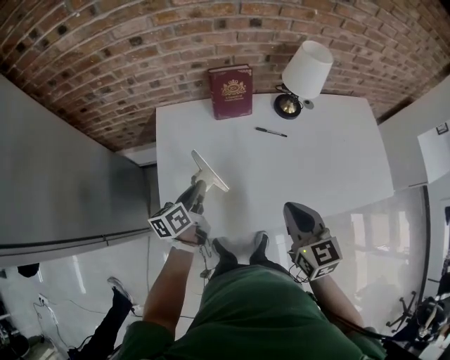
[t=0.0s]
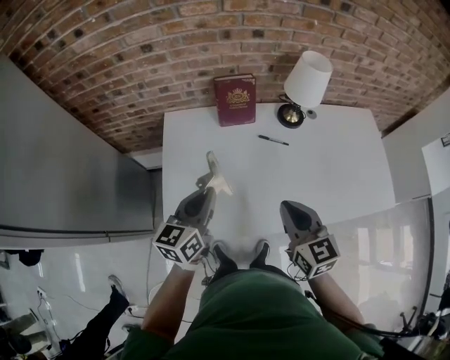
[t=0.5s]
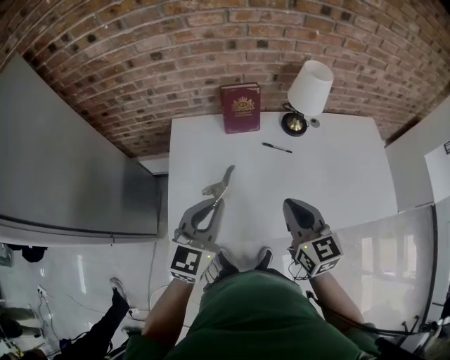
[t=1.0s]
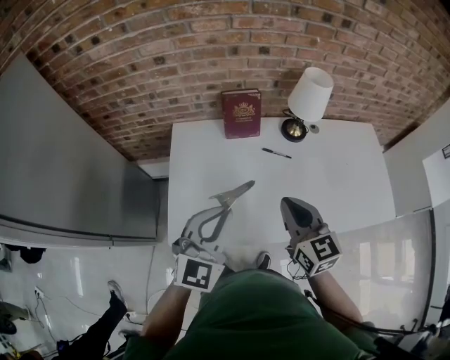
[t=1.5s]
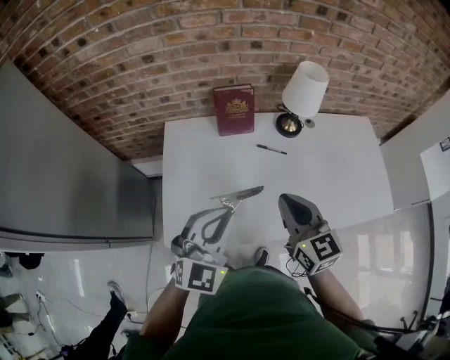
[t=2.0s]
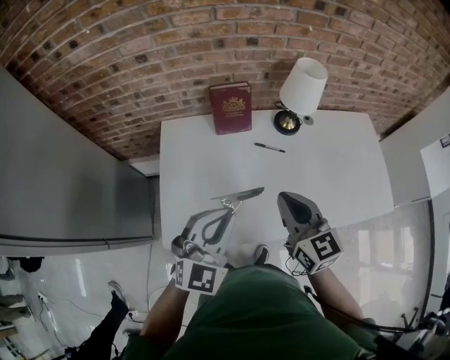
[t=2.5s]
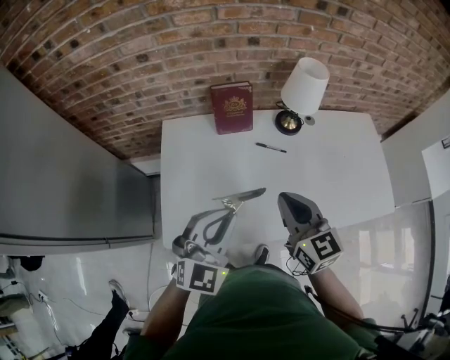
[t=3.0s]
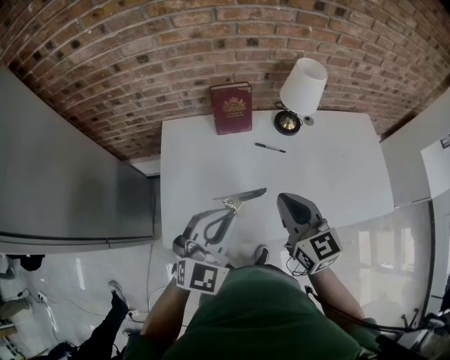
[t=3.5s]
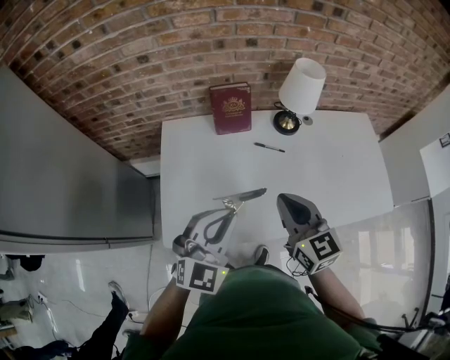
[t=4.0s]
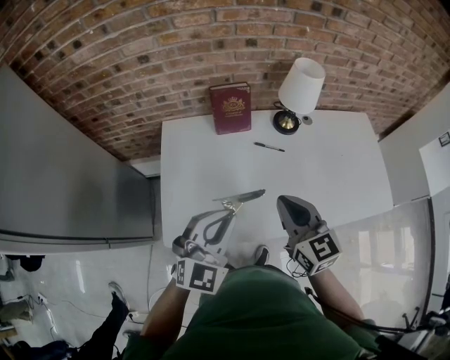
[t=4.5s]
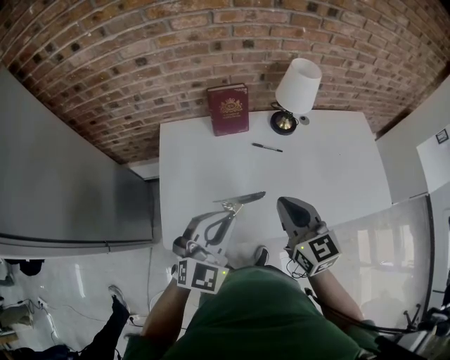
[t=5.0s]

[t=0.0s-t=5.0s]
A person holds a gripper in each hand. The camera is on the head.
t=0.0s to t=2.5s: The left gripper shifts about 25 cm upward, to the right and backward, and twists about 80 degrees clockwise, seen from behind, while the right gripper moves upward, roughly 5 cm.
t=2.5s to t=5.0s: The grippers stay close to where they were, moving slightly.

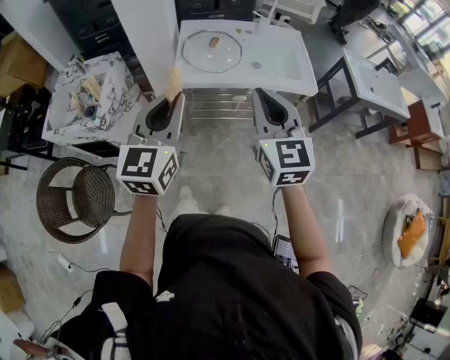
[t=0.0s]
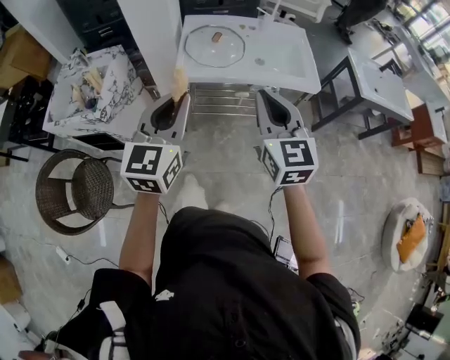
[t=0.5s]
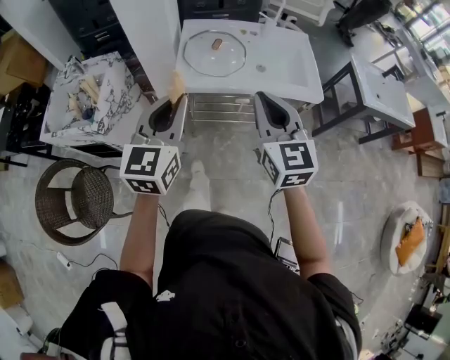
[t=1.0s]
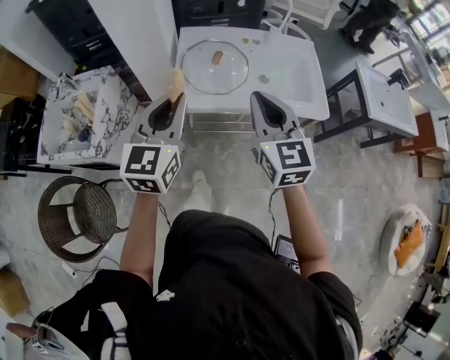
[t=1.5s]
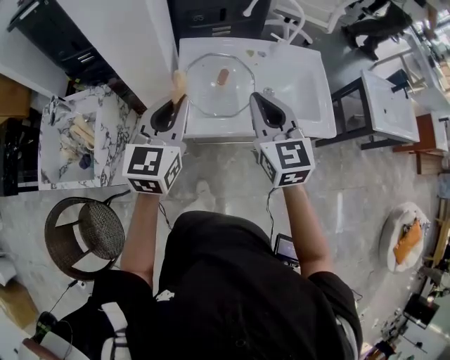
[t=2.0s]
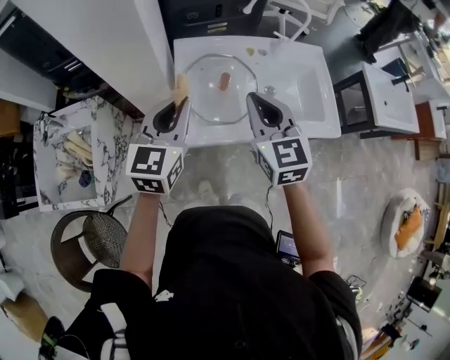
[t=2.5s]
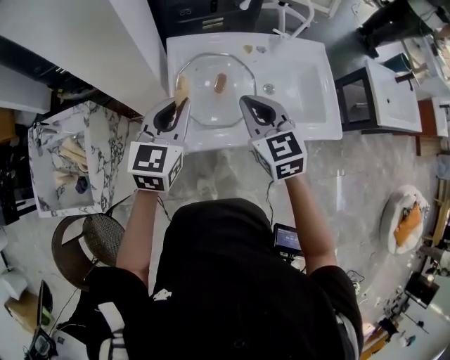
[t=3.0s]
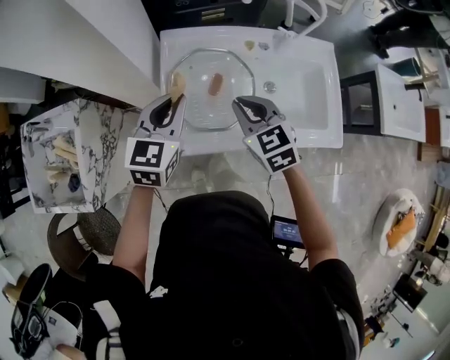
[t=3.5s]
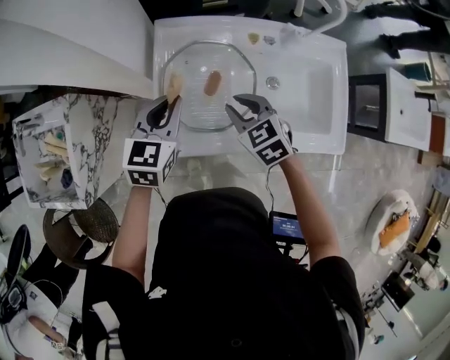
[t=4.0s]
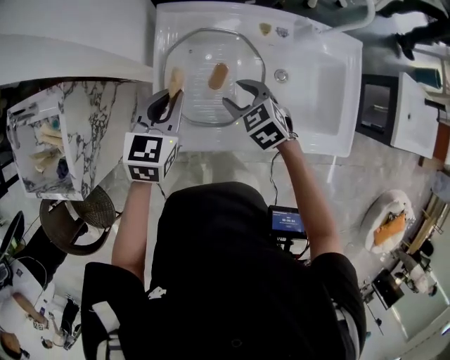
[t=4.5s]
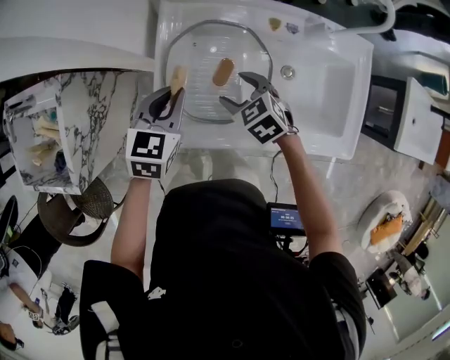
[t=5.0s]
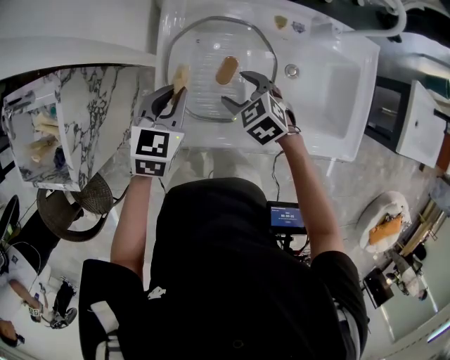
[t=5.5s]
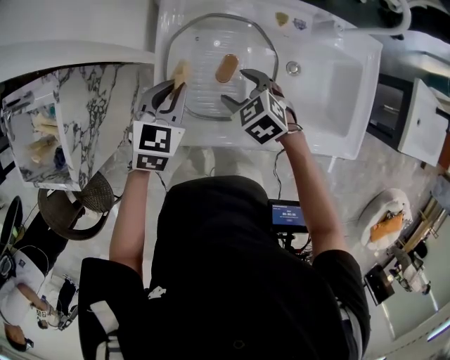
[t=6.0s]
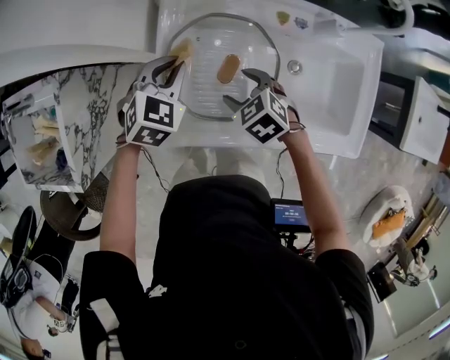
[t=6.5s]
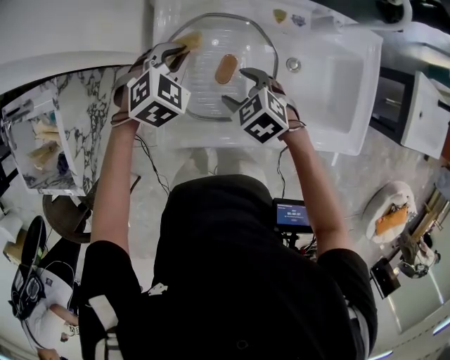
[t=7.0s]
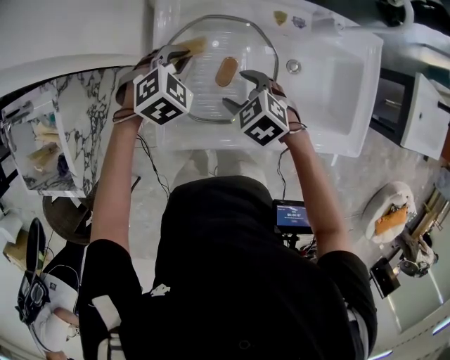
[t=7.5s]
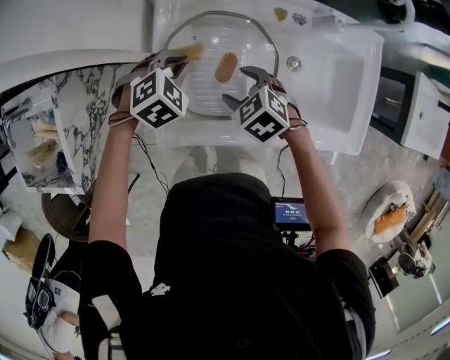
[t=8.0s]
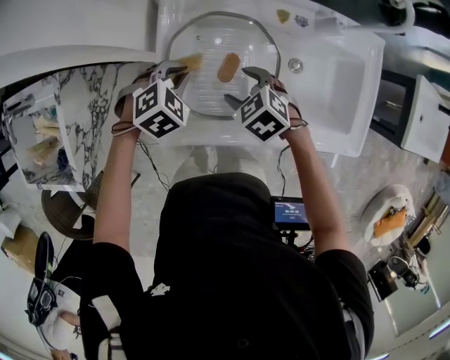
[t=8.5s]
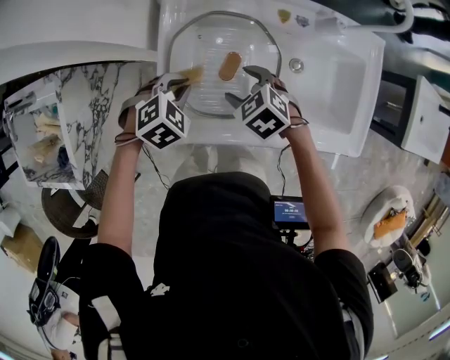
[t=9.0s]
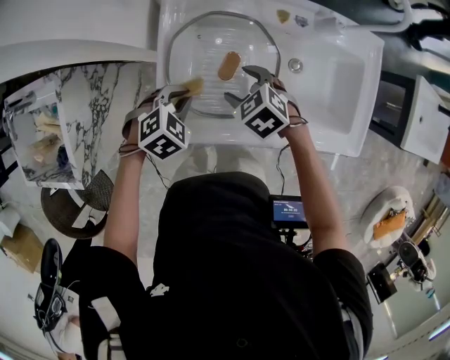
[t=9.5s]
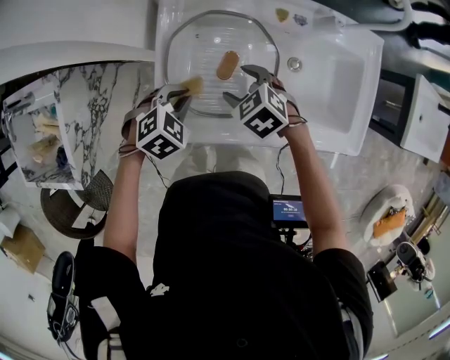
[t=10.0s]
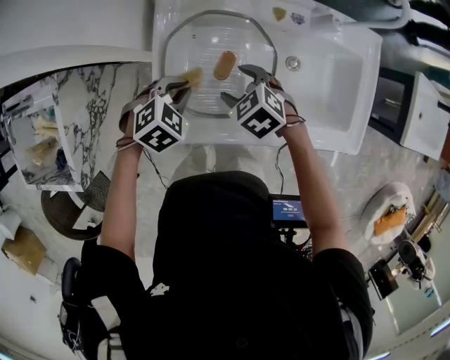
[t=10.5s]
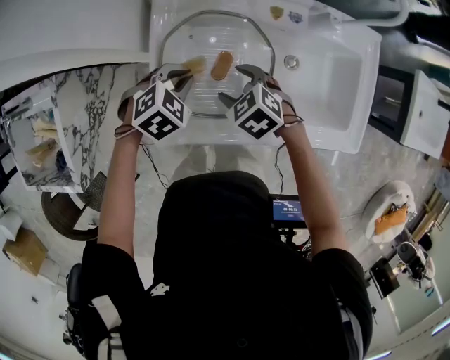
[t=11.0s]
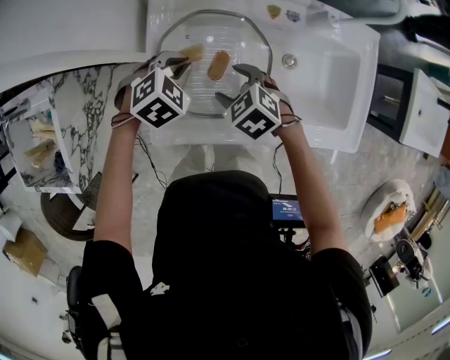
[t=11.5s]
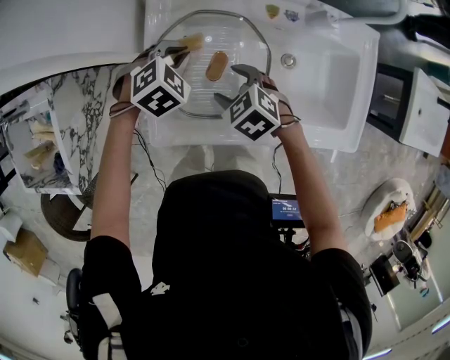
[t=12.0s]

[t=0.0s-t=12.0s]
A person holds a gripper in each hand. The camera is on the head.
t=0.0s to t=2.0s: The grippers both shift forward by approximately 30 cm.
t=2.0s to t=4.0s: The grippers both shift downward and forward by approximately 25 cm. The left gripper turns by about 20 degrees; the right gripper angles its fingers downward, by roughly 30 degrees.
t=4.0s to t=6.0s: The two grippers go roughly 10 cm downward. The right gripper opens its fingers.
t=6.0s to t=8.0s: The left gripper ends up about 5 cm from where it was, and rotates some 40 degrees.
t=8.0s to t=10.0s: The left gripper goes some 10 cm backward.
t=10.0s to t=12.0s: The left gripper travels forward by roughly 10 cm.

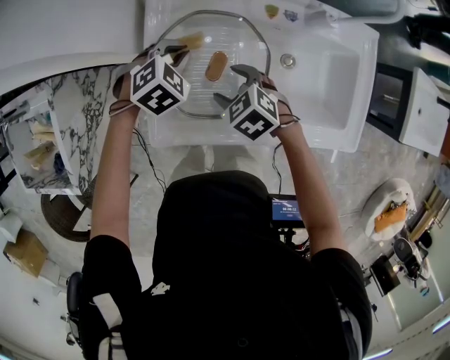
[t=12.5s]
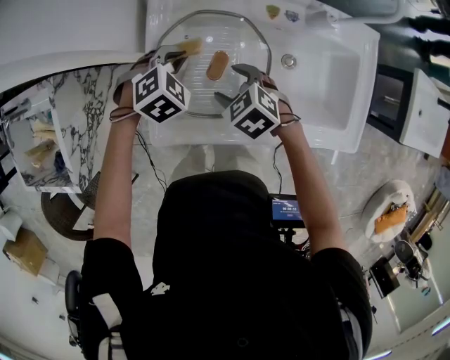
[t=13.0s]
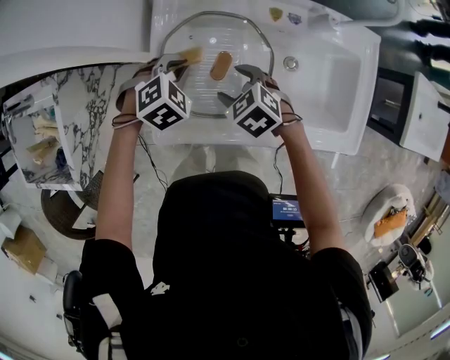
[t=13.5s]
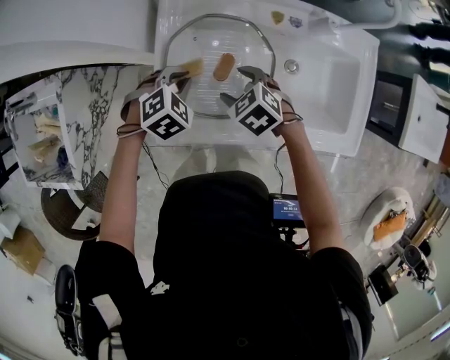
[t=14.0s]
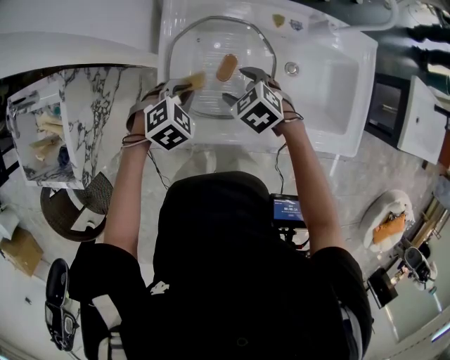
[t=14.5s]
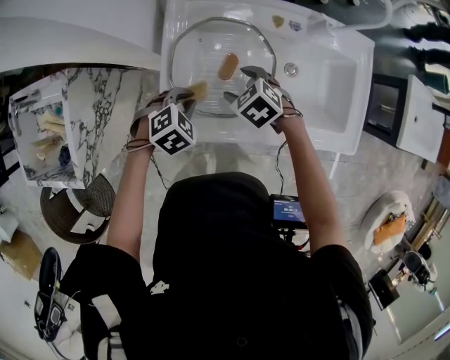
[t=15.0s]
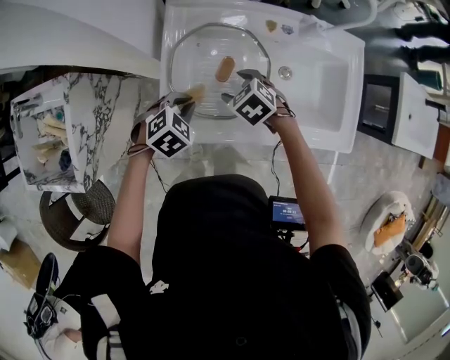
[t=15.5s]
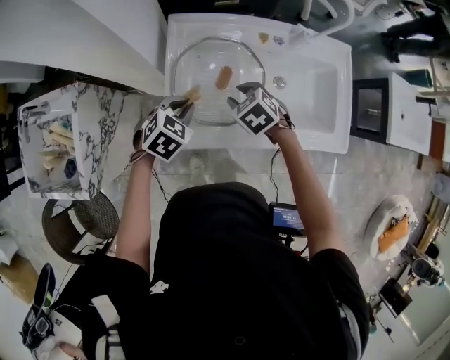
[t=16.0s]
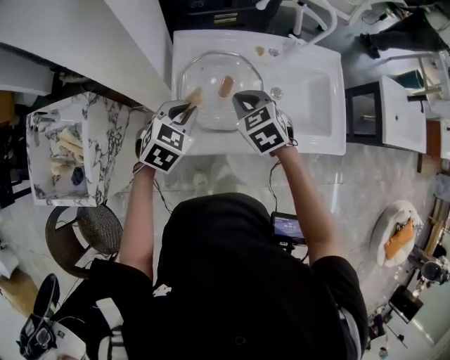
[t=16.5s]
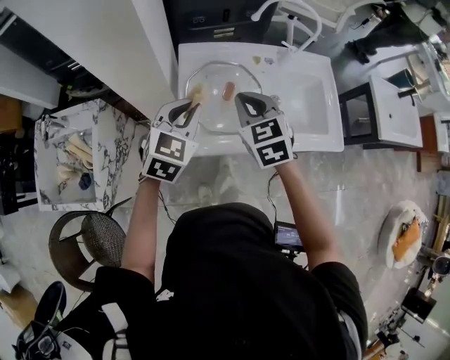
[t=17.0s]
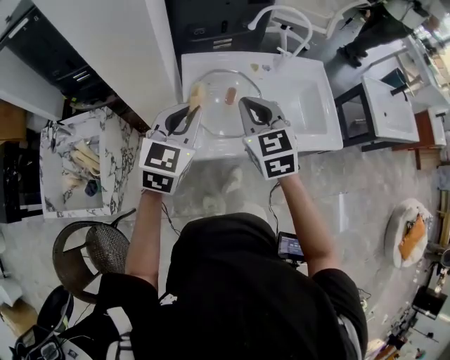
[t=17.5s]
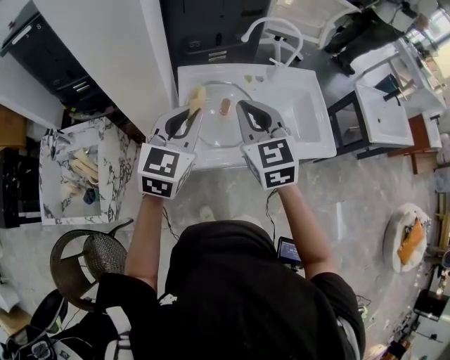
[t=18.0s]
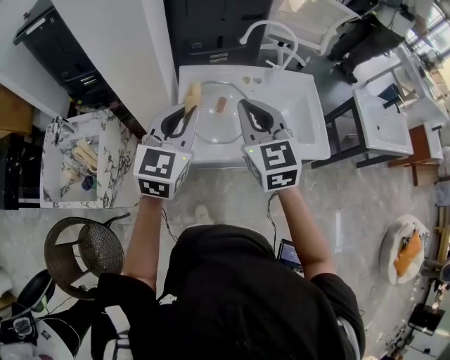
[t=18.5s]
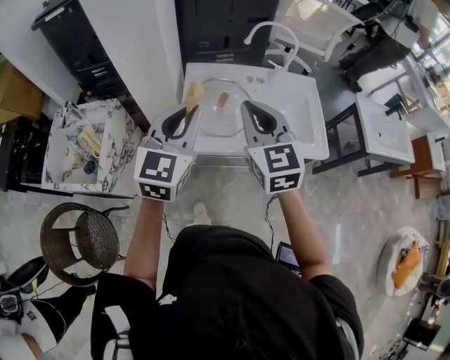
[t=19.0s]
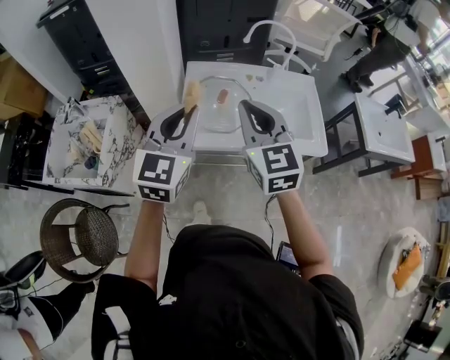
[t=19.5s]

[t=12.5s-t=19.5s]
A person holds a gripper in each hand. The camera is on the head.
t=12.5s to t=14.5s: The left gripper heads backward, covering approximately 10 cm.
t=14.5s to t=16.0s: The right gripper closes its fingers, while the left gripper heads upward, covering approximately 5 cm.
t=16.0s to t=17.5s: The two grippers go about 25 cm upward. The left gripper points its fingers roughly 40 degrees further upward. Meanwhile the right gripper tips its fingers upward by some 40 degrees, and closes up.
t=17.5s to t=19.5s: The grippers both shift backward, upward and to the right by some 15 cm.

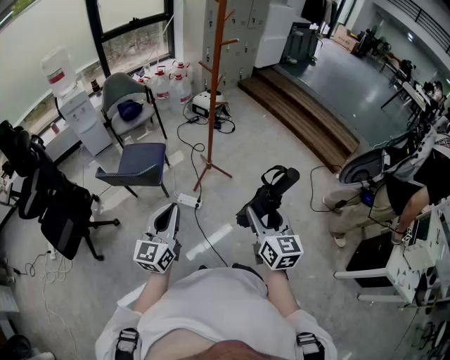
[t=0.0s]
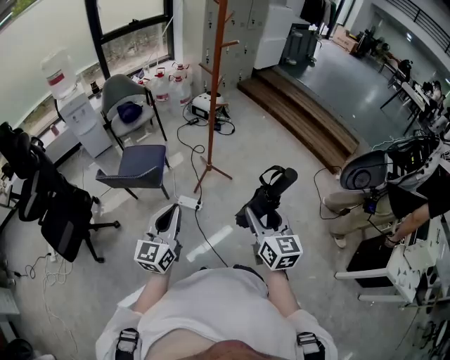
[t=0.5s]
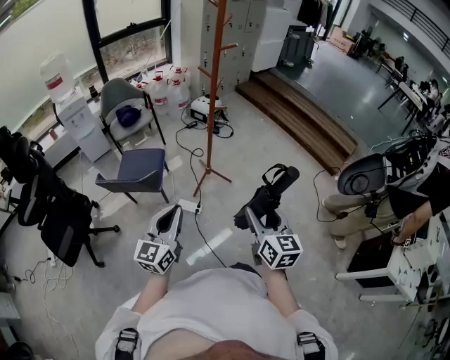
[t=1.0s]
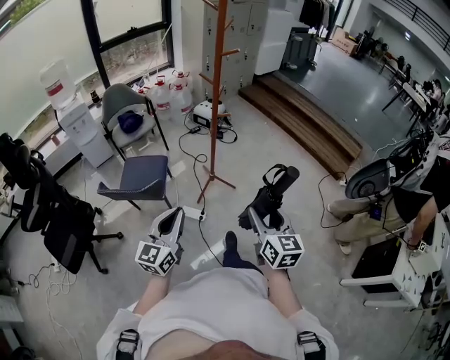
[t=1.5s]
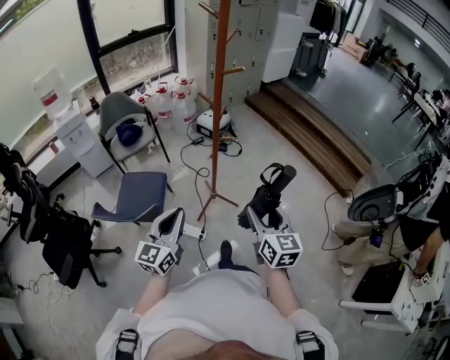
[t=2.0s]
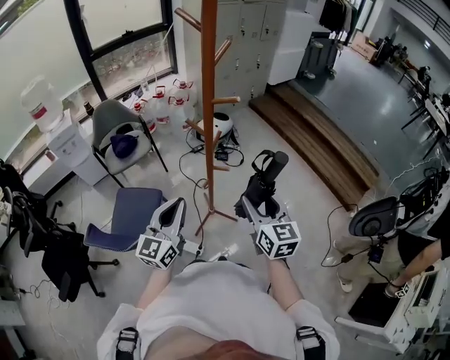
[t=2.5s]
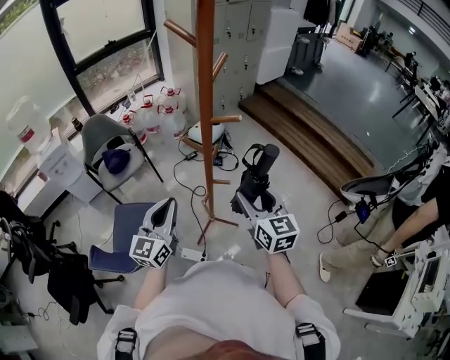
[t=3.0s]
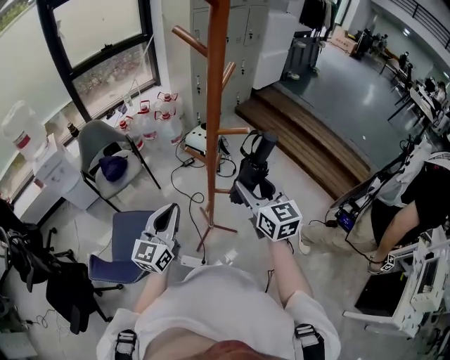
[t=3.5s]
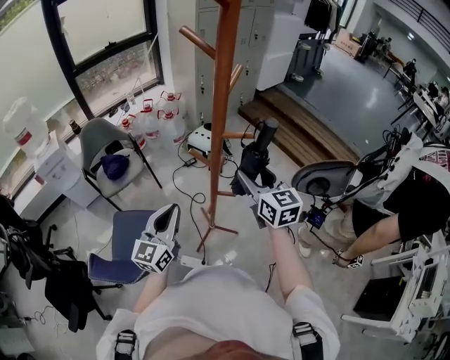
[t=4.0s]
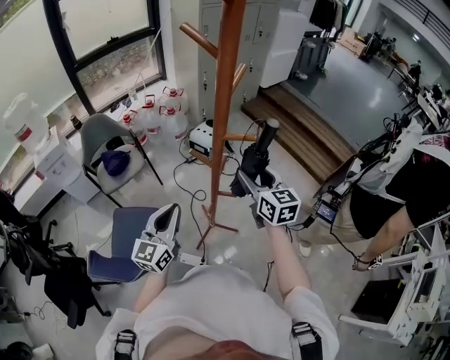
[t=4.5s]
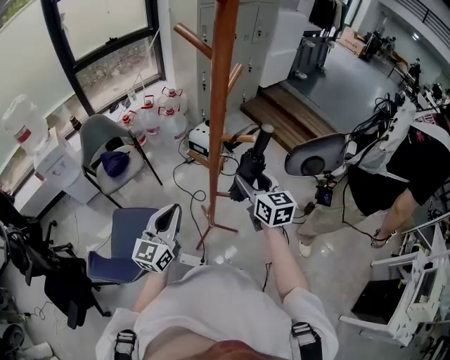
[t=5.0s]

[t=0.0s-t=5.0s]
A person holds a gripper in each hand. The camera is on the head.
t=0.0s to t=2.5s: The pair of grippers is taken forward, approximately 40 cm.
t=2.5s to t=5.0s: The right gripper shifts approximately 20 cm forward. The left gripper is displaced forward and to the left by some 15 cm.
